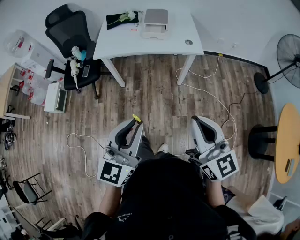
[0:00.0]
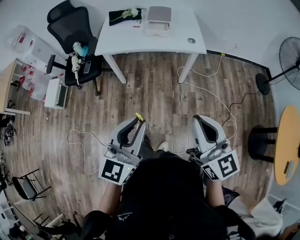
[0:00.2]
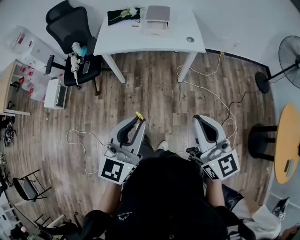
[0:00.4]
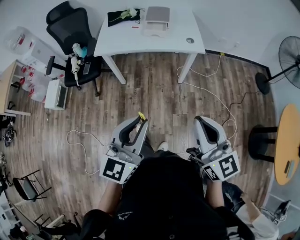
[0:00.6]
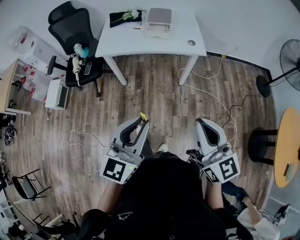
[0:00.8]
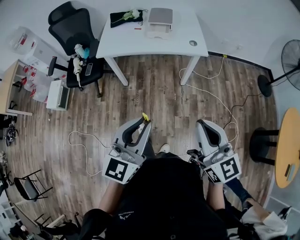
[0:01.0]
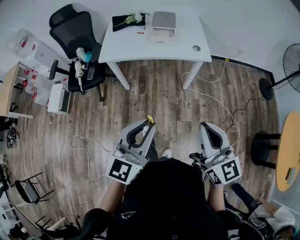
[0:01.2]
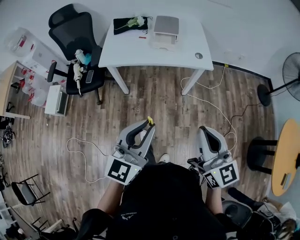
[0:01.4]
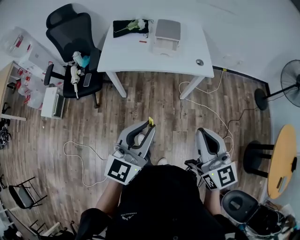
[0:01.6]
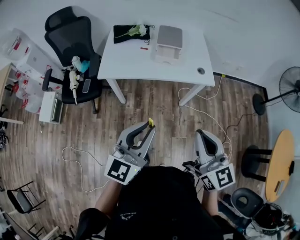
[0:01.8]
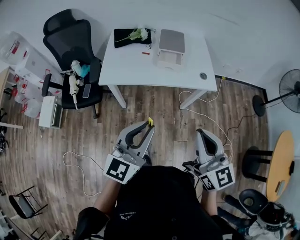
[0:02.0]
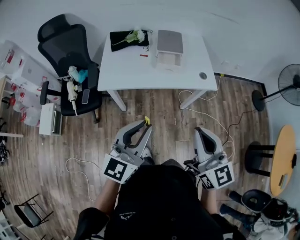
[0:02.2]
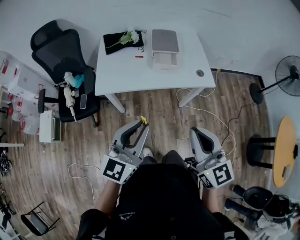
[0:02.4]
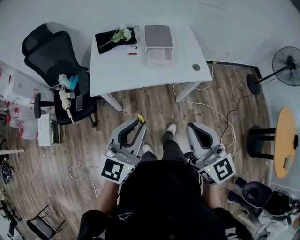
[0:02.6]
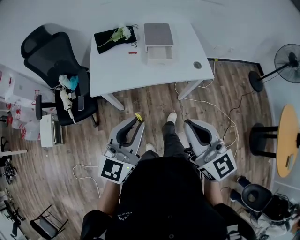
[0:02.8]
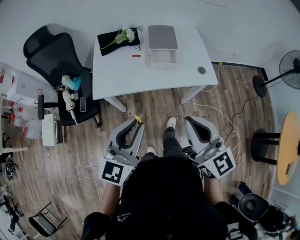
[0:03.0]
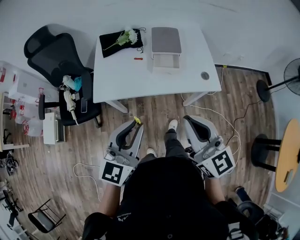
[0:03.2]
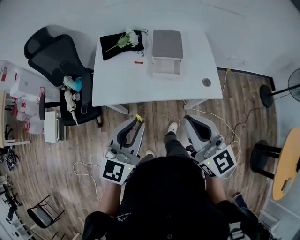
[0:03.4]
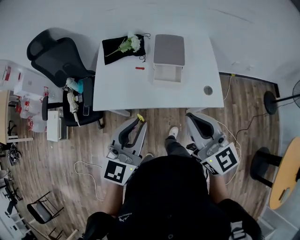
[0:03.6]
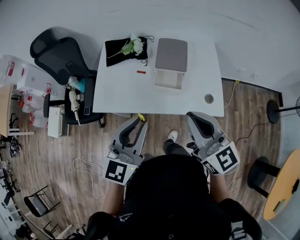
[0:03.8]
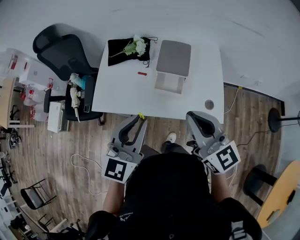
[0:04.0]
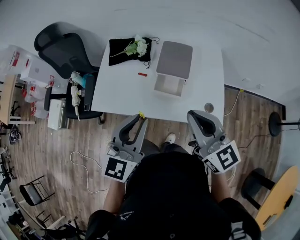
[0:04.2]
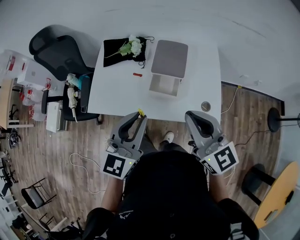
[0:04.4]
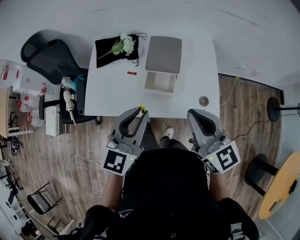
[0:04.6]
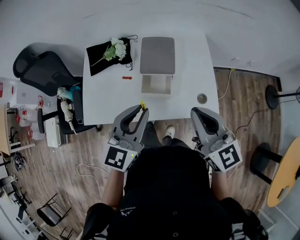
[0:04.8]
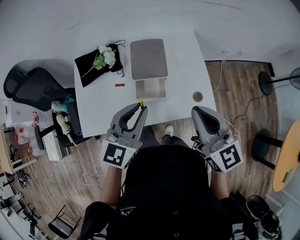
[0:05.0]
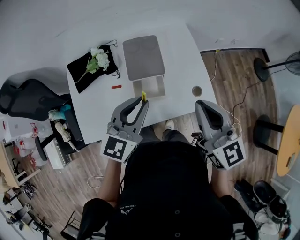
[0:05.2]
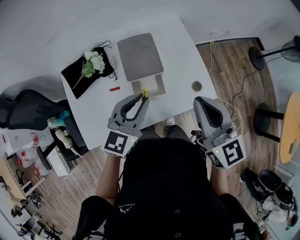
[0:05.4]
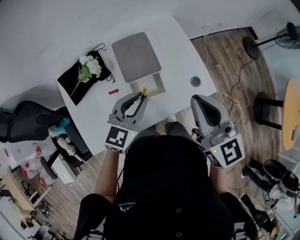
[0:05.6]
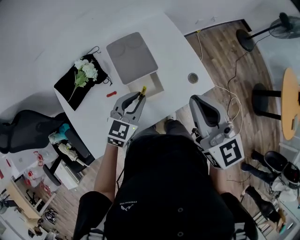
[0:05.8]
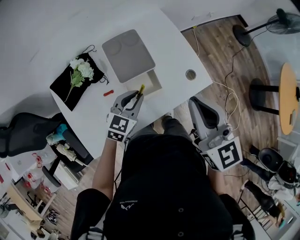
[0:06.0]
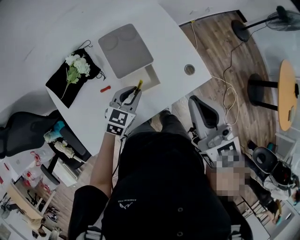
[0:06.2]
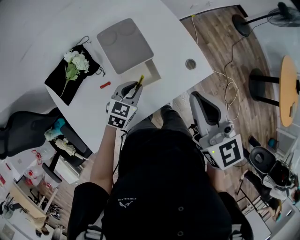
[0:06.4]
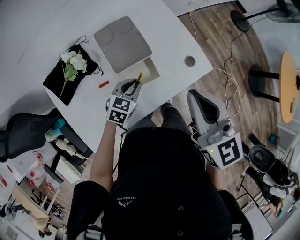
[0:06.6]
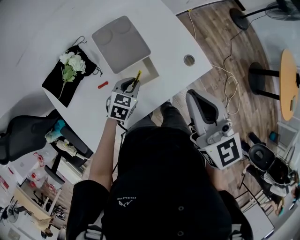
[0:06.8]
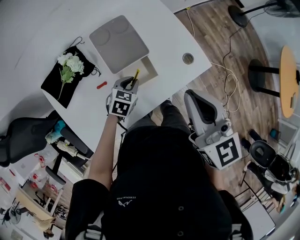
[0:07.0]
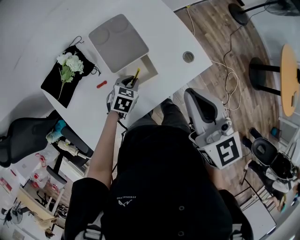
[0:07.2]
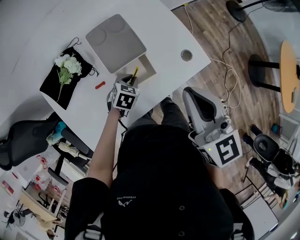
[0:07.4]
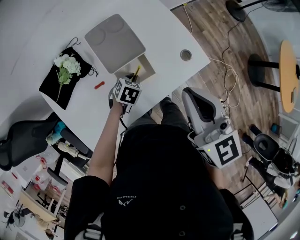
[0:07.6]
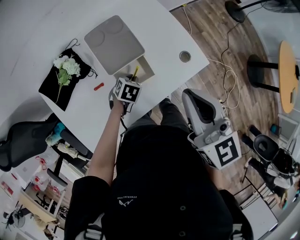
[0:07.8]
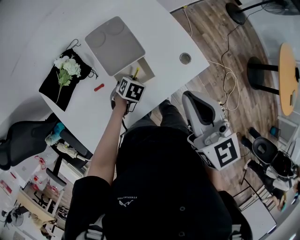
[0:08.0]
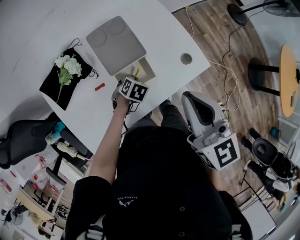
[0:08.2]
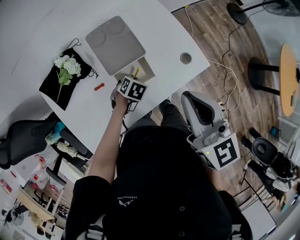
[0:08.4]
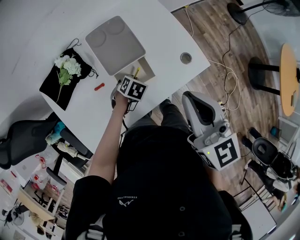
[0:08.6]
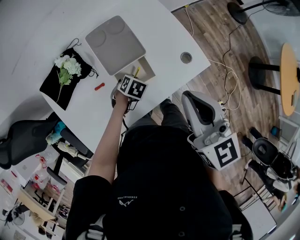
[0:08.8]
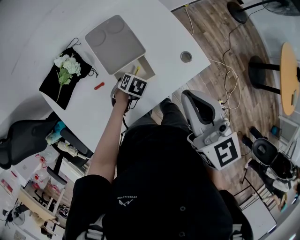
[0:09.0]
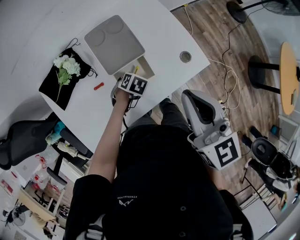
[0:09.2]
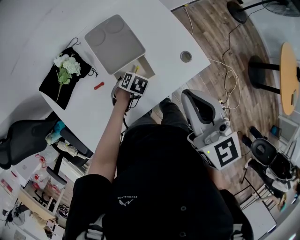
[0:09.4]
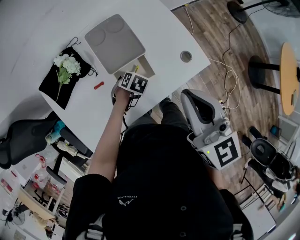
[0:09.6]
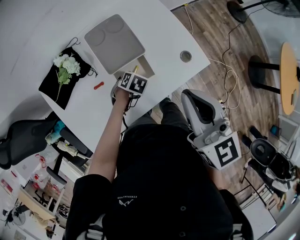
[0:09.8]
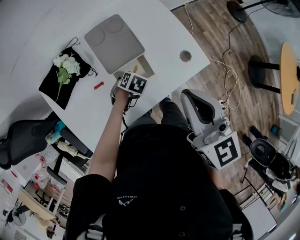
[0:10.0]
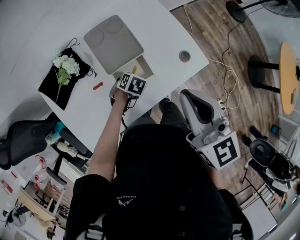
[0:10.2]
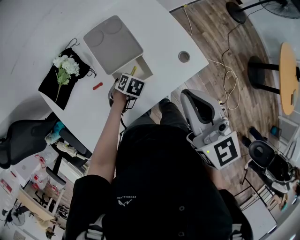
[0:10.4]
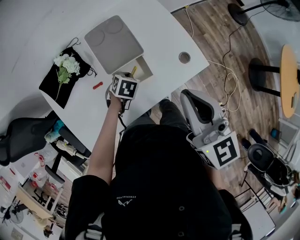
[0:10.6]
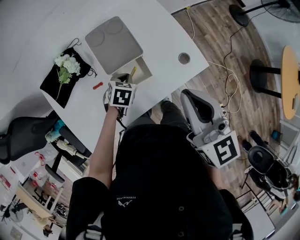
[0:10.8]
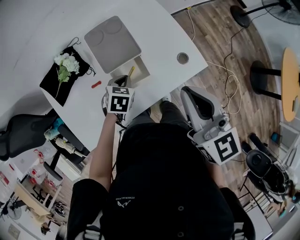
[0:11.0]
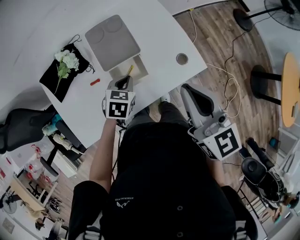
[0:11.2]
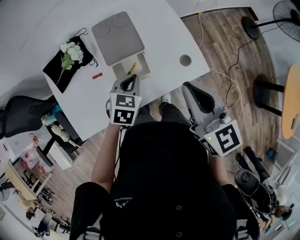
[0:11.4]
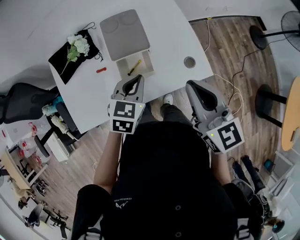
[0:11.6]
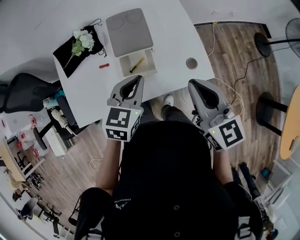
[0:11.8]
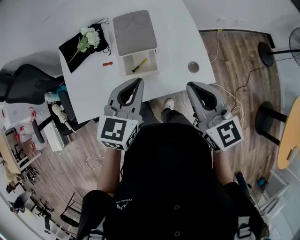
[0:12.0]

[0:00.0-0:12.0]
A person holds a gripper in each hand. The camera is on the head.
0:00.0 to 0:01.6: Both grippers travel together forward, approximately 15 cm.
0:01.6 to 0:03.0: The two grippers go some 20 cm forward and to the left.
0:03.0 to 0:04.4: The two grippers go about 30 cm forward and to the right.
0:04.4 to 0:06.0: The left gripper is displaced downward by about 20 cm, and swivels about 50 degrees, while the right gripper moves some 10 cm, and rotates some 40 degrees.
0:06.0 to 0:07.6: The left gripper moves downward, about 15 cm, and tilts its fingers roughly 30 degrees downward.
0:07.6 to 0:09.0: The grippers make only small movements.
0:09.0 to 0:10.4: Neither gripper changes place.
0:10.4 to 0:12.0: The left gripper goes roughly 30 cm upward, and tilts its fingers roughly 50 degrees upward. Meanwhile the right gripper ends up some 10 cm from where it was, and swivels about 20 degrees.

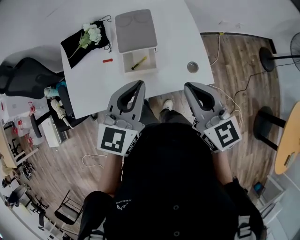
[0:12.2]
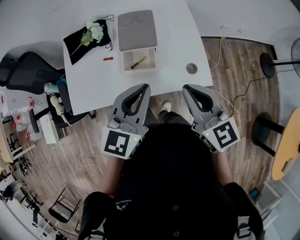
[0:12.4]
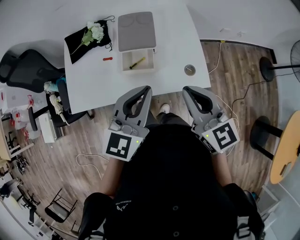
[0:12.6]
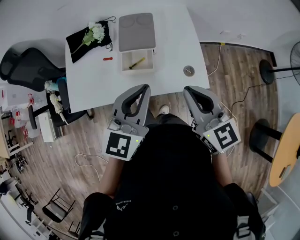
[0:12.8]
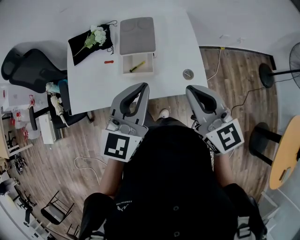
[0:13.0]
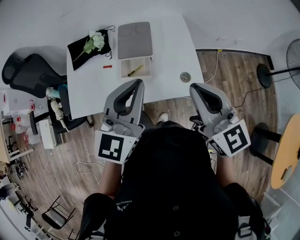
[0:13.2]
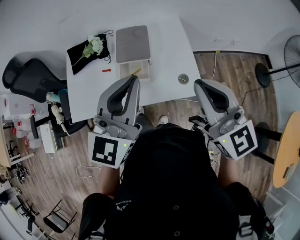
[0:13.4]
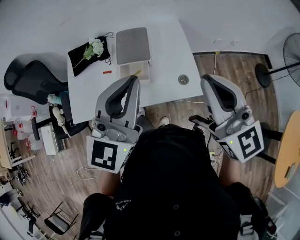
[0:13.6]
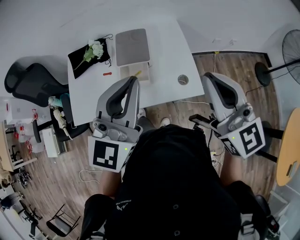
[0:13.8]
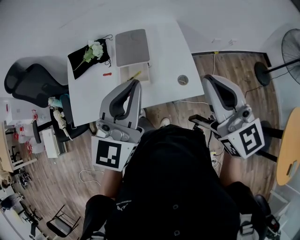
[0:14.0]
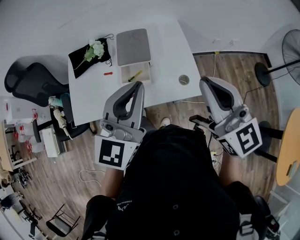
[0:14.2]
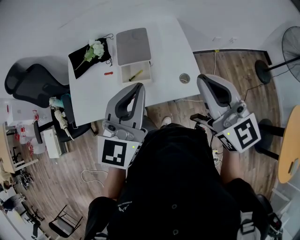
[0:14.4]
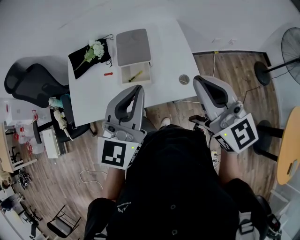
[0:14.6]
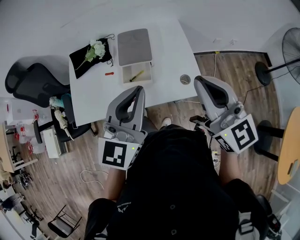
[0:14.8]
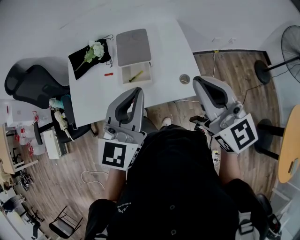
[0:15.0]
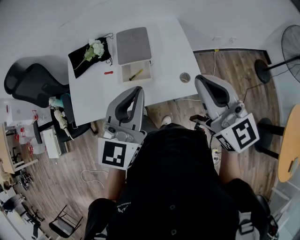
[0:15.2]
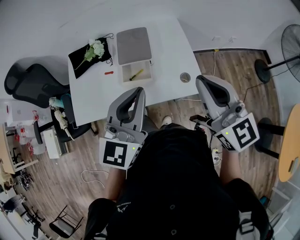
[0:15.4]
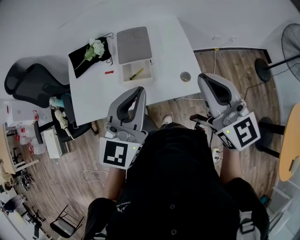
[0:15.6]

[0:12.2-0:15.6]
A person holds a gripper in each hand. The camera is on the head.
0:12.2 to 0:13.8: The right gripper heads upward and to the right, covering about 15 cm, while the left gripper moves upward, about 15 cm, and rotates approximately 20 degrees.
0:13.8 to 0:15.6: The left gripper ends up some 5 cm from where it was.

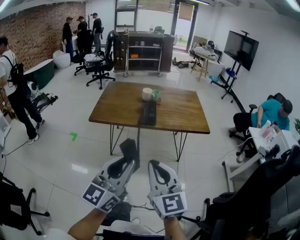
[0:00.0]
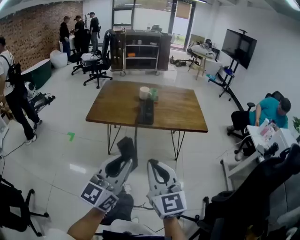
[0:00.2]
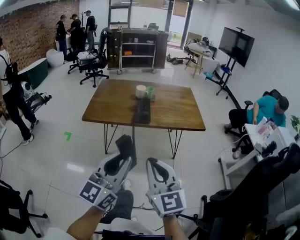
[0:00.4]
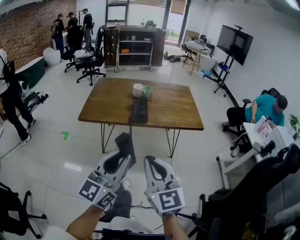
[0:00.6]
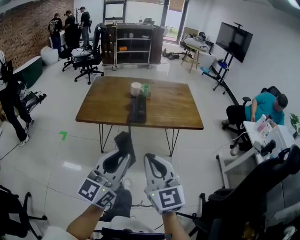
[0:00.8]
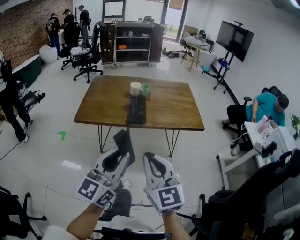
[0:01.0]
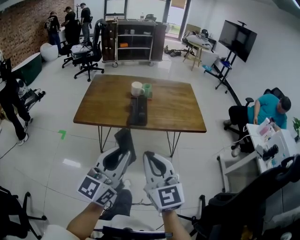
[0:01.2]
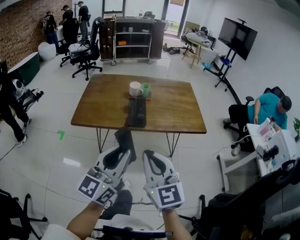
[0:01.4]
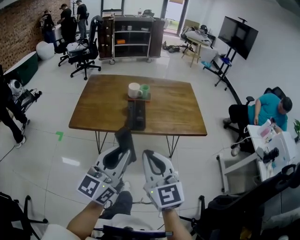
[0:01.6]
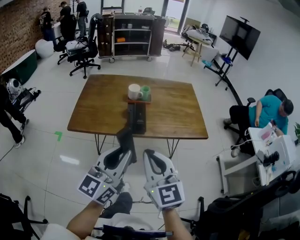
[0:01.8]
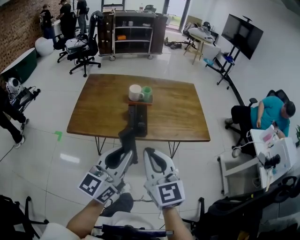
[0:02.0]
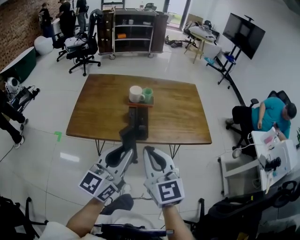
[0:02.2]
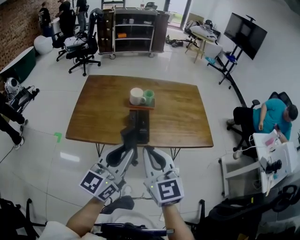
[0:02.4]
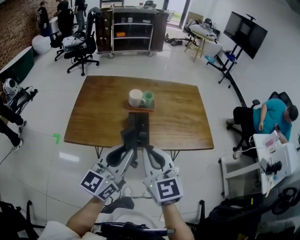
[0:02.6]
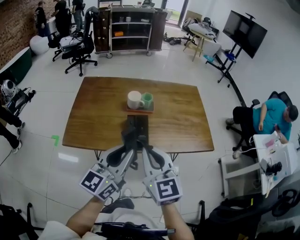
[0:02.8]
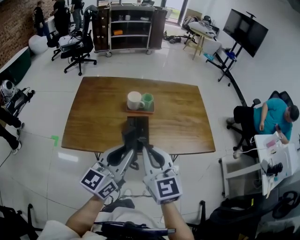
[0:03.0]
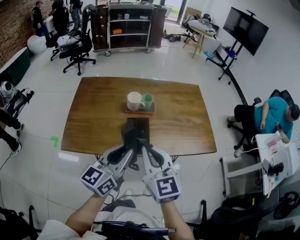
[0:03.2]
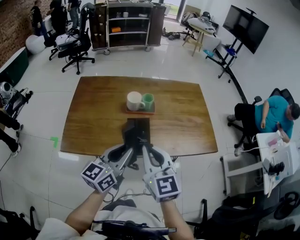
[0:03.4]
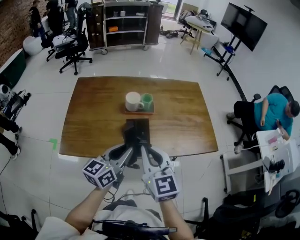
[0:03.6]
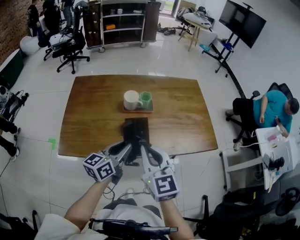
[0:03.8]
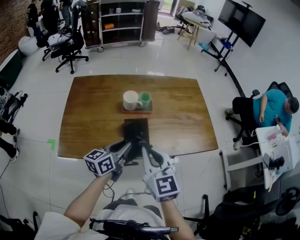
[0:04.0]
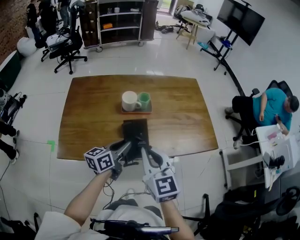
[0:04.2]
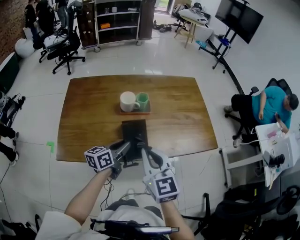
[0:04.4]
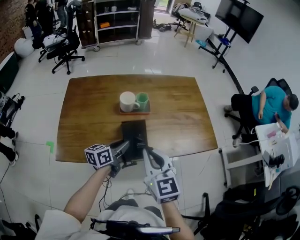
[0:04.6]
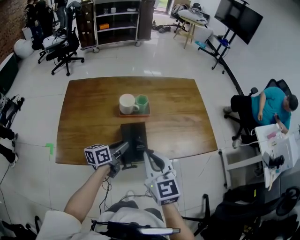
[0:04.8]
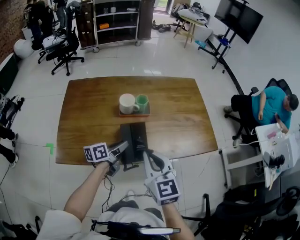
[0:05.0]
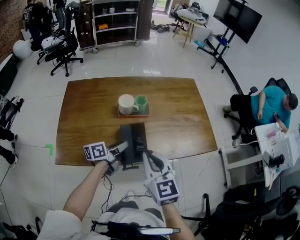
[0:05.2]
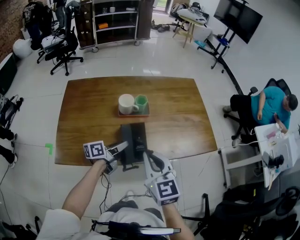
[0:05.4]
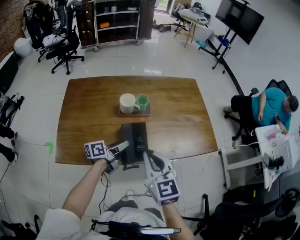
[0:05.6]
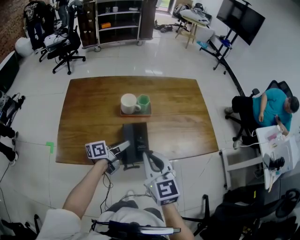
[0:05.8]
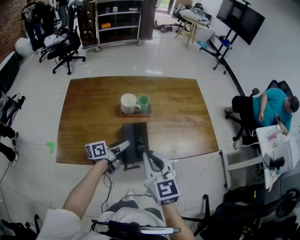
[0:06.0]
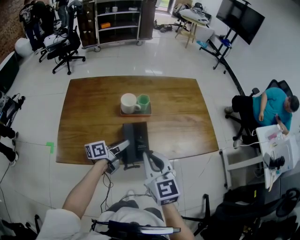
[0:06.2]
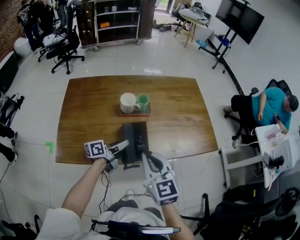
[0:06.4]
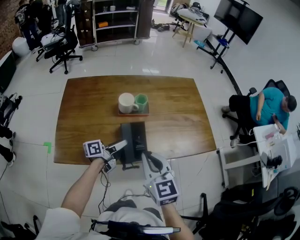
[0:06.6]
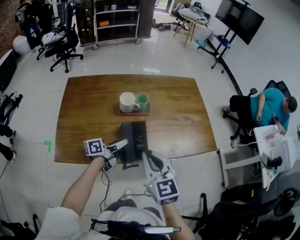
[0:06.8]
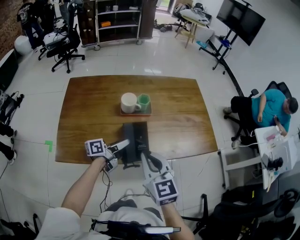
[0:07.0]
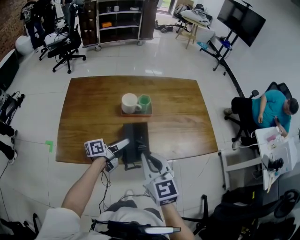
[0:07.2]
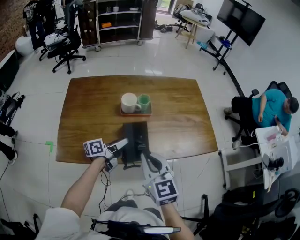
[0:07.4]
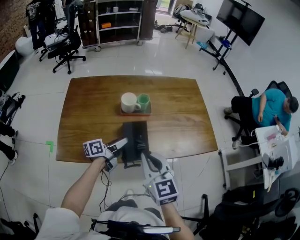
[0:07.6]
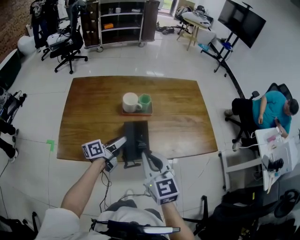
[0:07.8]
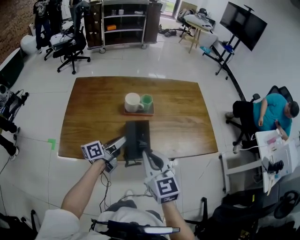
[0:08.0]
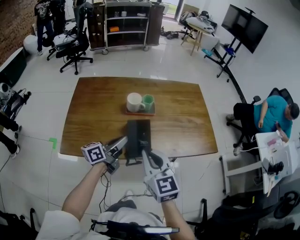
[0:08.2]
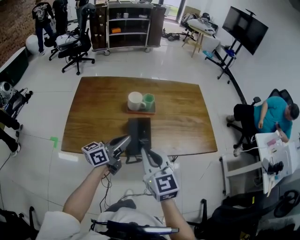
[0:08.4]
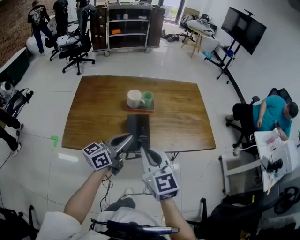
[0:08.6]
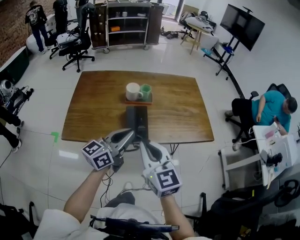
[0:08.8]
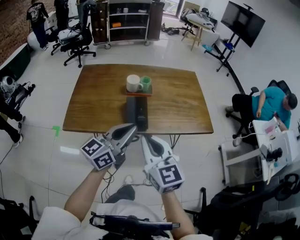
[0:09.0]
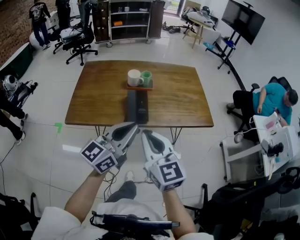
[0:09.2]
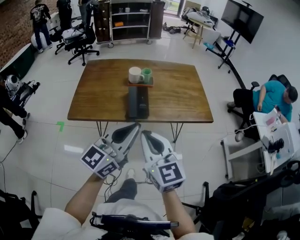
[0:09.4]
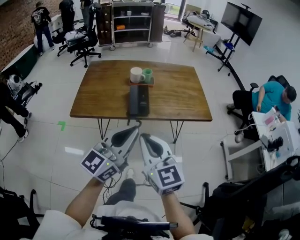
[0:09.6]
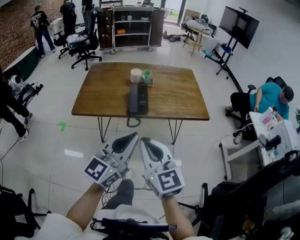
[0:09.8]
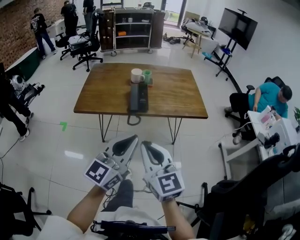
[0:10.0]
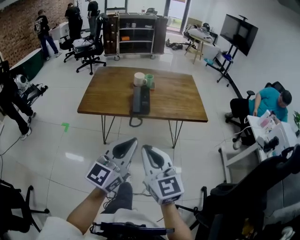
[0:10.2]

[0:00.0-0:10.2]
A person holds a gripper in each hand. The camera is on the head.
0:00.0 to 0:01.4: The two grippers go approximately 15 cm forward.
0:01.4 to 0:03.0: Both grippers move forward, approximately 25 cm.
0:03.0 to 0:04.4: The left gripper heads downward and forward, covering approximately 25 cm, and changes its angle by some 30 degrees. The right gripper heads forward, covering approximately 5 cm.
0:04.4 to 0:05.8: The left gripper changes place by about 5 cm, and changes its angle by approximately 20 degrees.
0:05.8 to 0:07.2: The grippers move only a little.
0:07.2 to 0:08.8: The left gripper moves upward and backward, about 25 cm, rolls clockwise, seen from behind, by roughly 40 degrees, and closes up. The right gripper moves backward and upward, some 10 cm.
0:08.8 to 0:10.2: Both grippers move backward, approximately 30 cm. The left gripper rotates about 30 degrees.
